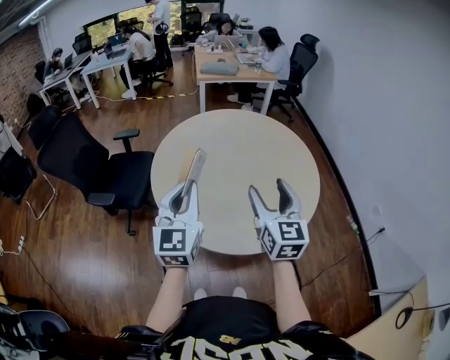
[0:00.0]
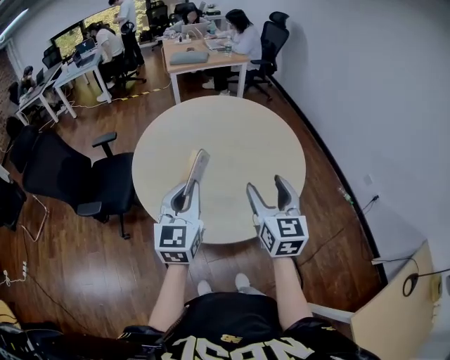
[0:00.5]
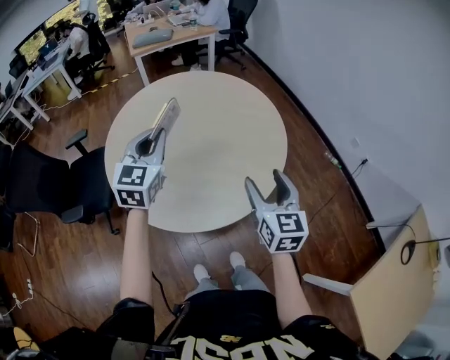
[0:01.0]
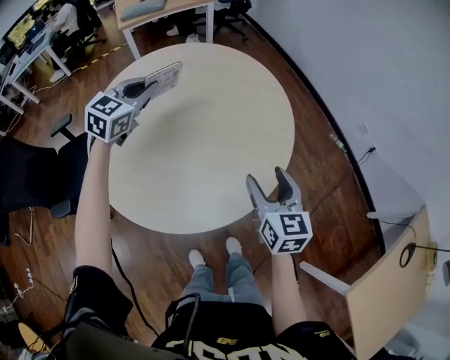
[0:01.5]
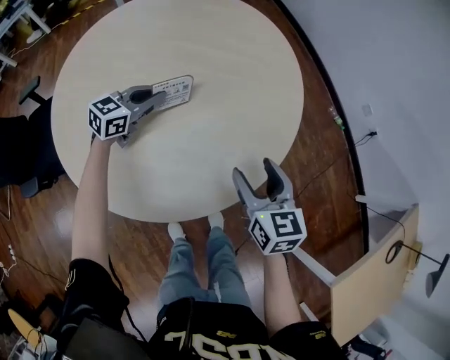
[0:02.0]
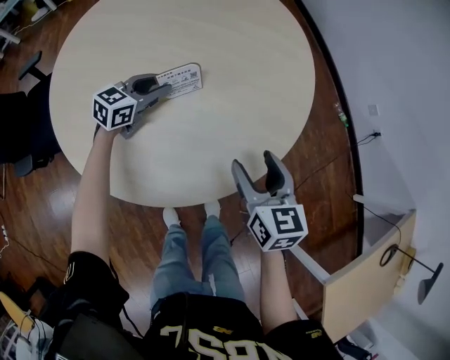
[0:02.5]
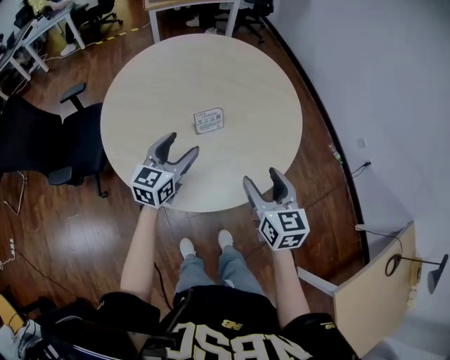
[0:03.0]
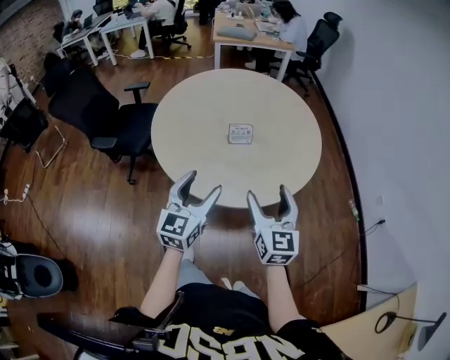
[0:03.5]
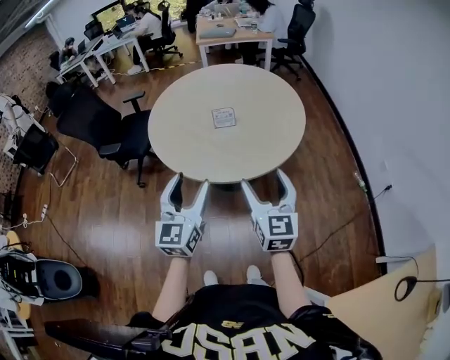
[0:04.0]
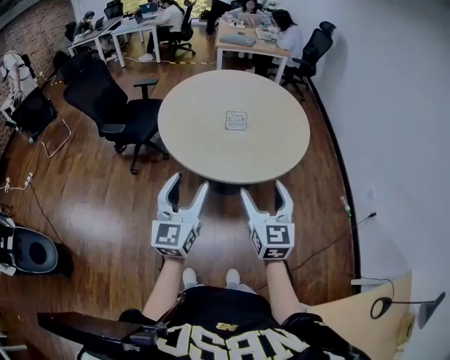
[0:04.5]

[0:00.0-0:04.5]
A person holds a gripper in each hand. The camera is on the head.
0:00.0 to 0:02.0: Both grippers travel together downward, some 30 cm. The right gripper rotates about 30 degrees. The left gripper changes its angle by approximately 60 degrees.
0:02.0 to 0:04.5: The left gripper shifts by roughly 60 cm, swivels some 70 degrees, and opens its fingers. Meanwhile the right gripper moves roughly 35 cm, and turns by some 30 degrees.

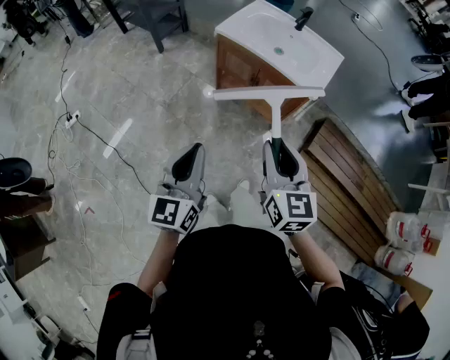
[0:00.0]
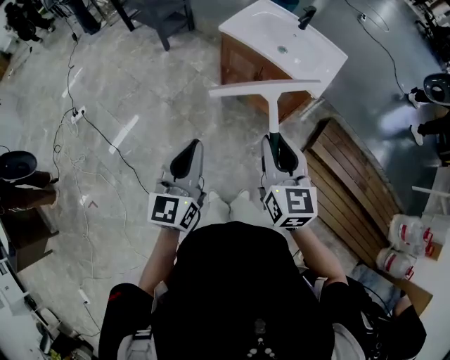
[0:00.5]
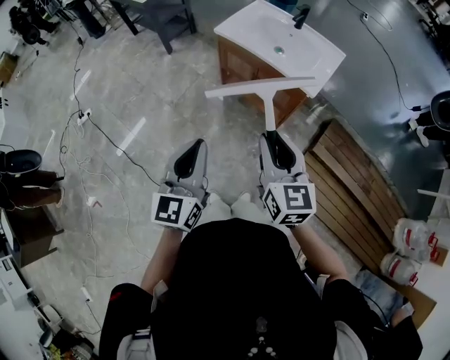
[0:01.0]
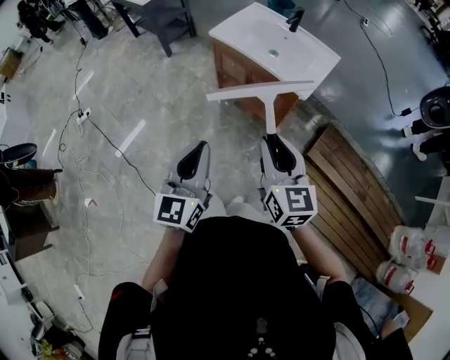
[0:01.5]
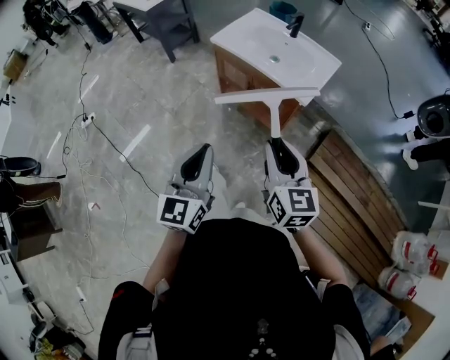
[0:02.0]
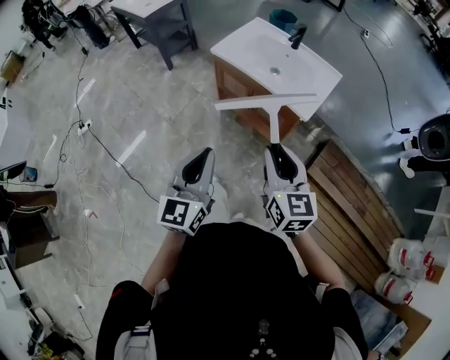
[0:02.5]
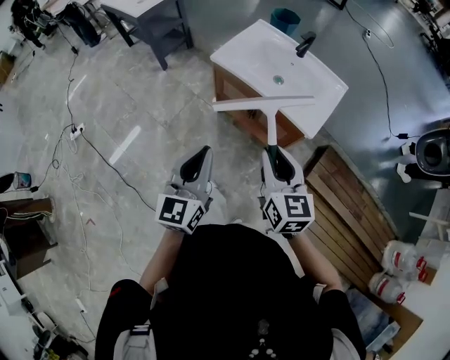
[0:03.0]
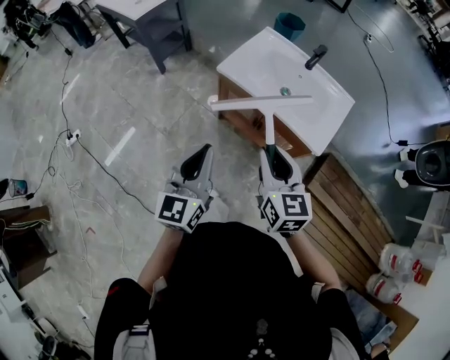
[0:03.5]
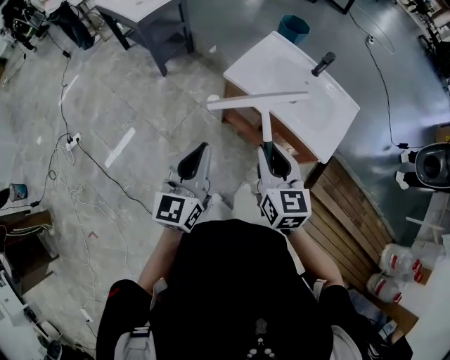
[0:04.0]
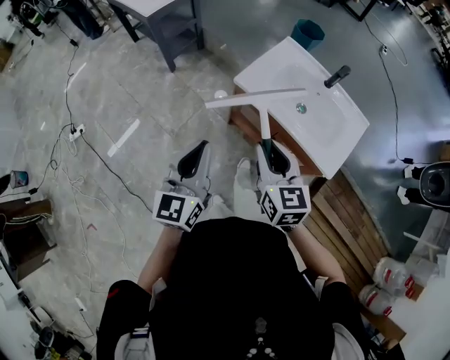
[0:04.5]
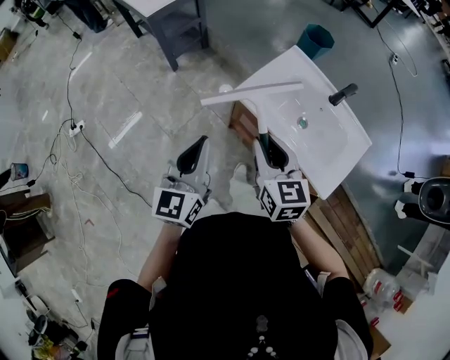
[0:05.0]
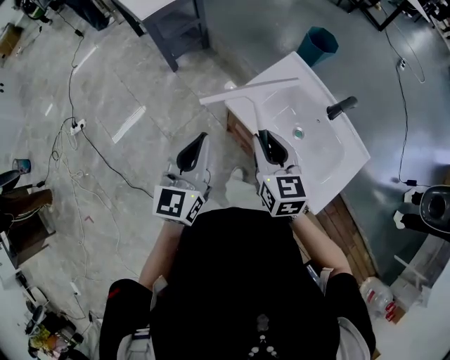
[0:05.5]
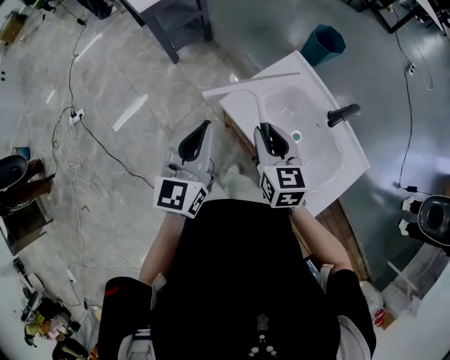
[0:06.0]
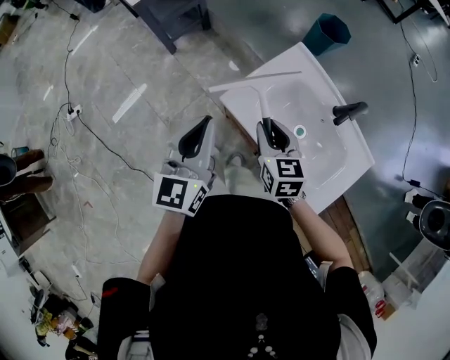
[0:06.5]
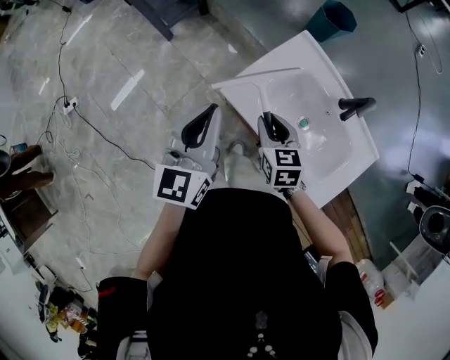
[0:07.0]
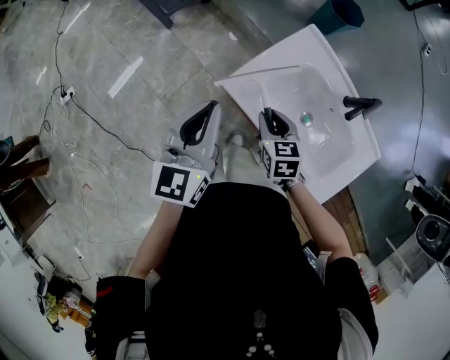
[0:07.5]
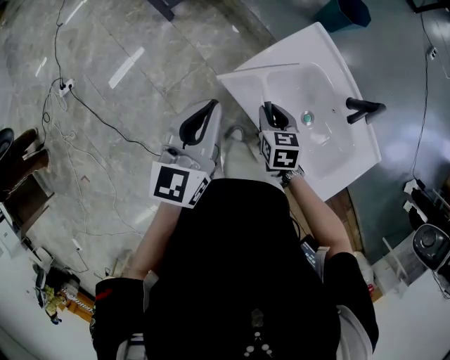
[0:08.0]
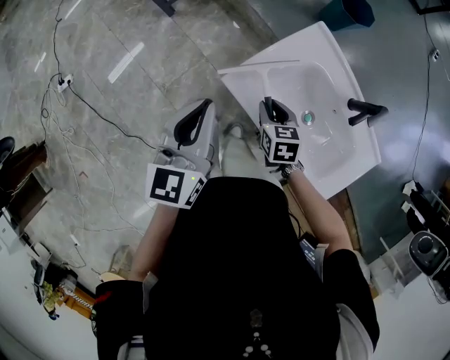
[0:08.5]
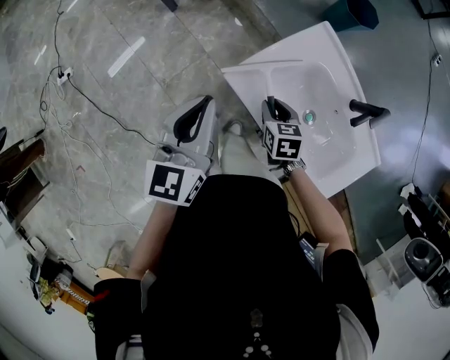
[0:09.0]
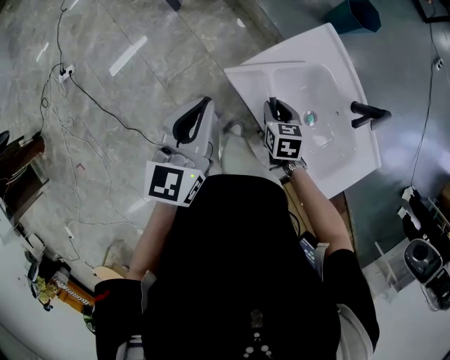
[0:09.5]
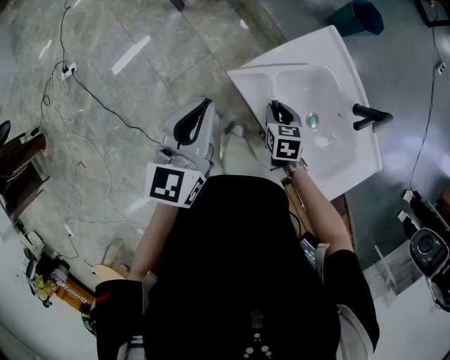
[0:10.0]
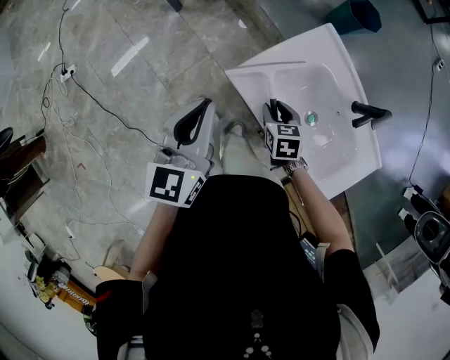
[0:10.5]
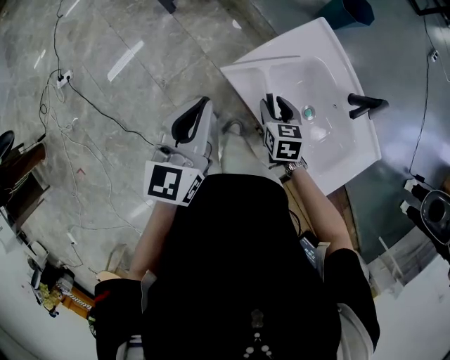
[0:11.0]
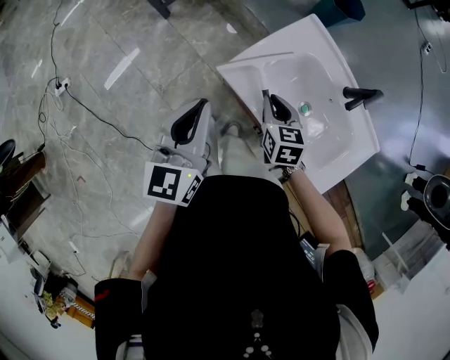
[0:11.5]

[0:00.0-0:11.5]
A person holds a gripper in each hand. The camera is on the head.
0:00.0 to 0:02.0: The two grippers go about 10 cm to the right.
0:02.0 to 0:04.0: The two grippers go approximately 30 cm forward and to the left.
0:04.0 to 0:06.0: The grippers both shift forward by some 25 cm.
0:06.0 to 0:07.5: The left gripper goes approximately 10 cm forward and downward; the right gripper is displaced downward by roughly 15 cm.
0:07.5 to 0:09.5: The right gripper goes some 5 cm downward.
0:09.5 to 0:11.5: The right gripper moves upward, about 5 cm.

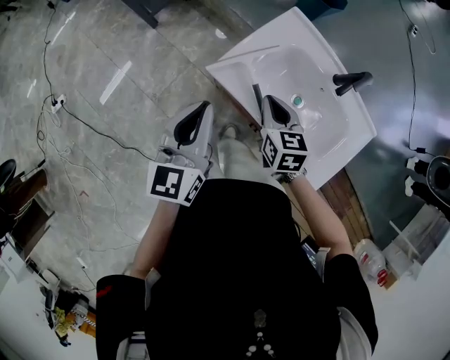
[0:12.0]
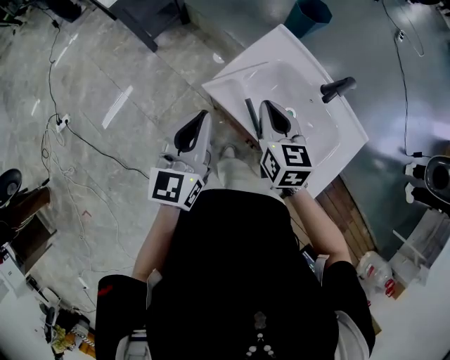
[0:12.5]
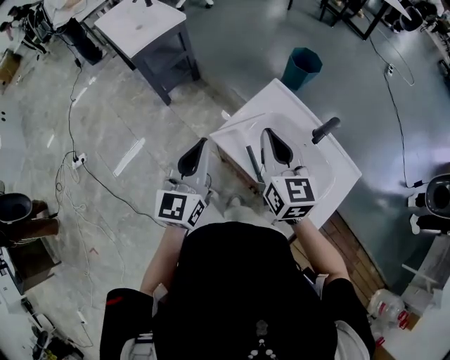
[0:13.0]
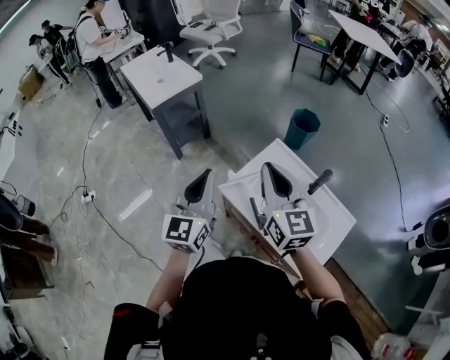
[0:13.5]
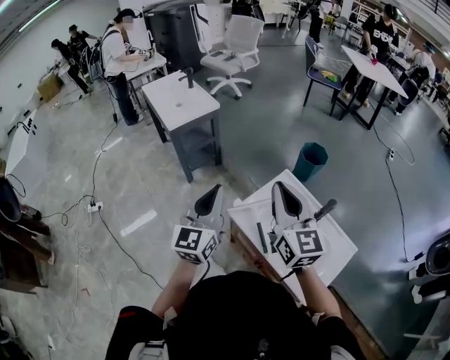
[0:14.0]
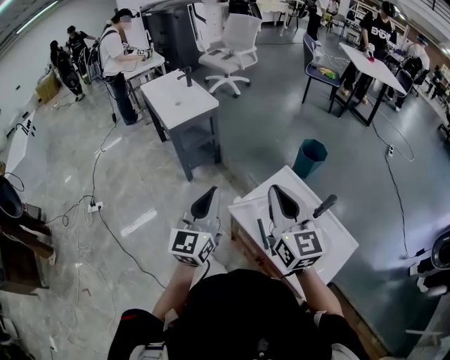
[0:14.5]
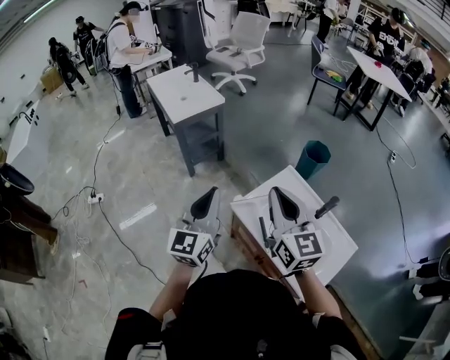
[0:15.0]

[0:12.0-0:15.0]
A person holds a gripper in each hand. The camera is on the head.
0:12.0 to 0:13.5: The right gripper travels upward by roughly 30 cm, and tilts its fingers some 40 degrees upward, while the left gripper travels upward by approximately 15 cm.
0:13.5 to 0:15.0: The left gripper moves roughly 5 cm. Meanwhile the right gripper changes place by about 5 cm.

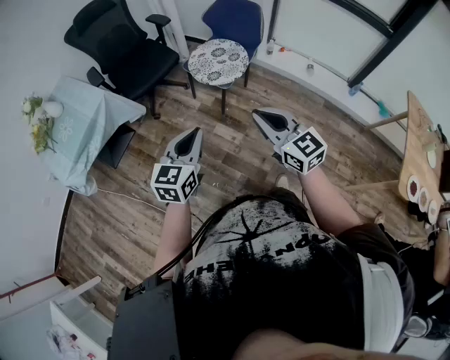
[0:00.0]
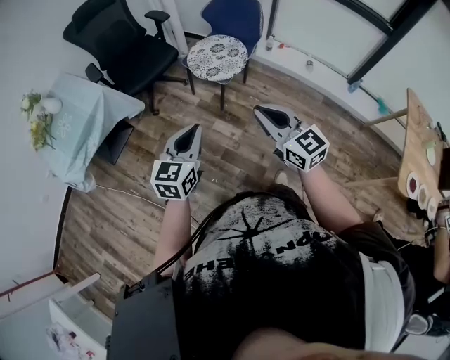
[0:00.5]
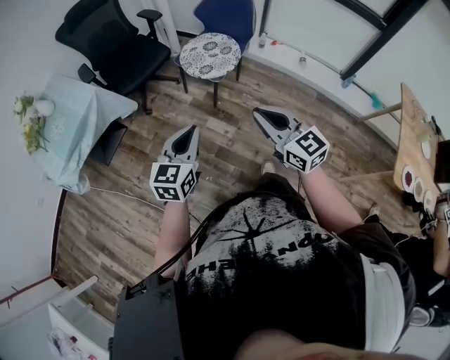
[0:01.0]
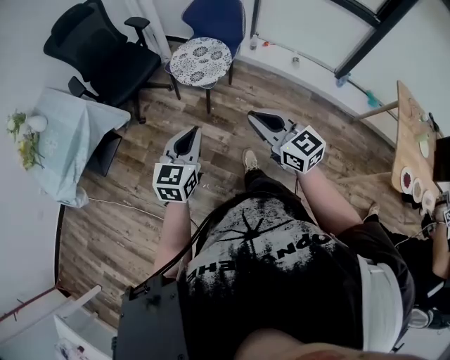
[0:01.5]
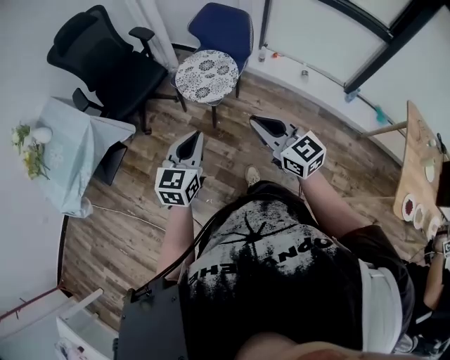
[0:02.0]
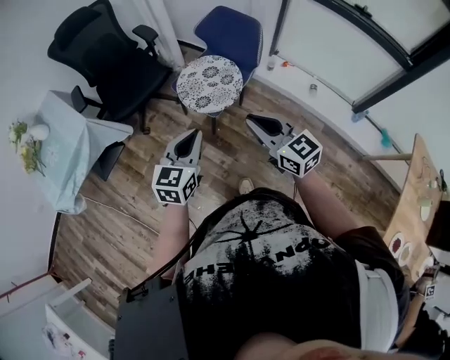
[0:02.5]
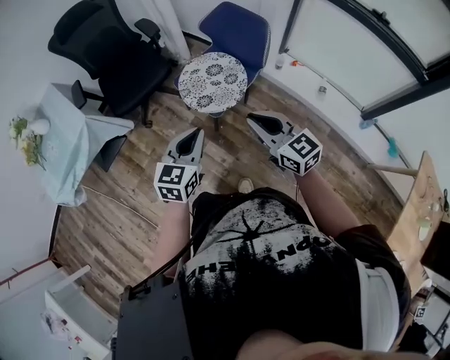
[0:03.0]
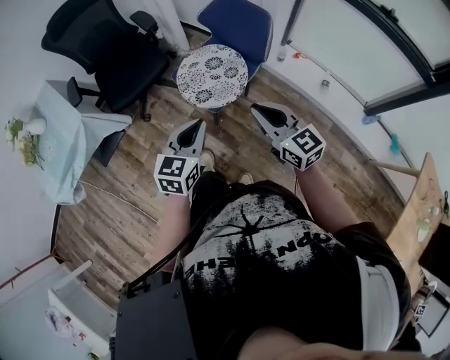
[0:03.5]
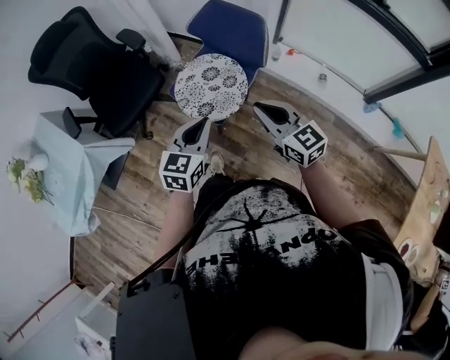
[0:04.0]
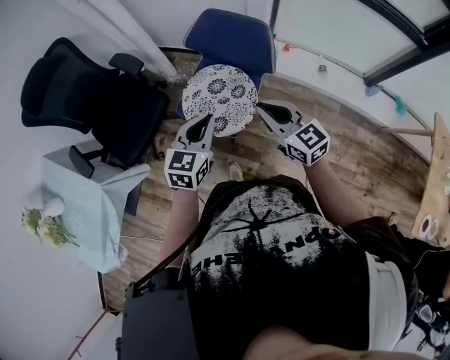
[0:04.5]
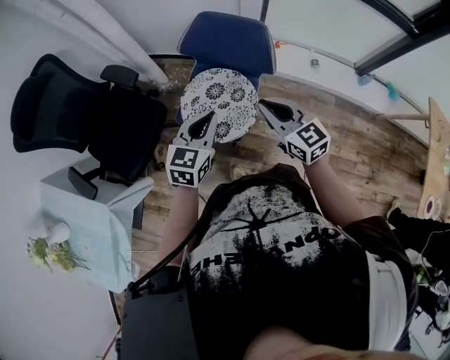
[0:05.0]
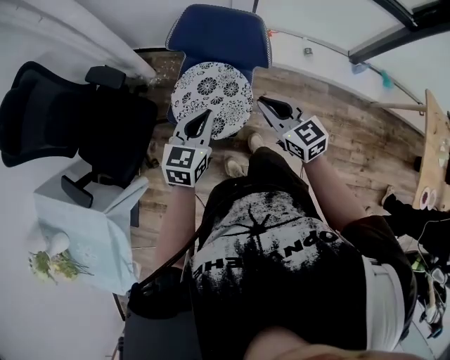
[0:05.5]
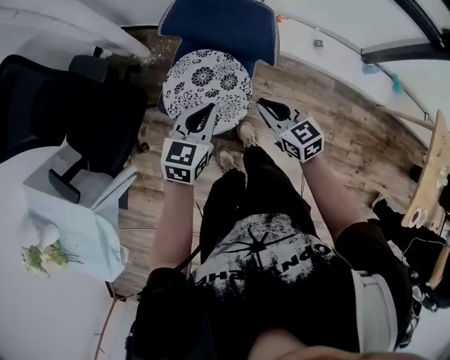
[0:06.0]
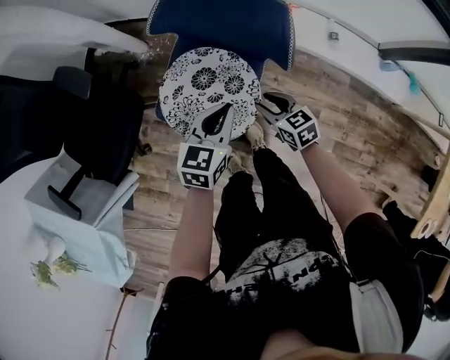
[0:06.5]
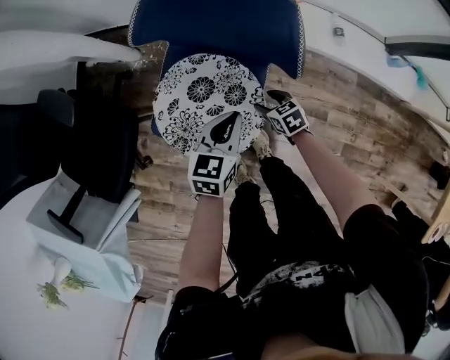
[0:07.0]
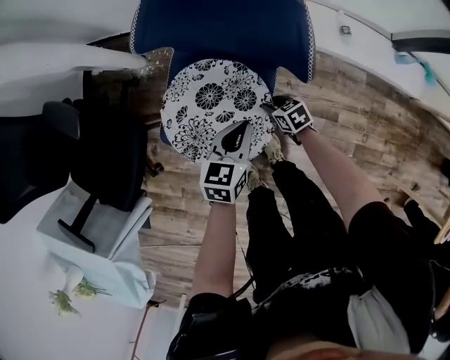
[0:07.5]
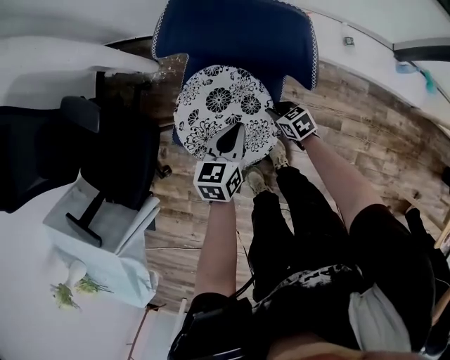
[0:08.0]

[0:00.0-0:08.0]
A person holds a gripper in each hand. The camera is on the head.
0:00.0 to 0:02.0: Both grippers move forward and to the right, roughly 15 cm.
0:02.0 to 0:04.0: Both grippers travel together forward, approximately 25 cm.
0:04.0 to 0:06.0: Both grippers travel together forward and downward, roughly 25 cm. The left gripper turns by approximately 20 degrees; the right gripper changes its angle by about 30 degrees.
0:06.0 to 0:08.0: The left gripper is displaced downward by about 20 cm, while the right gripper travels downward by roughly 35 cm, swivels roughly 30 degrees, and opens, then closes once more.
